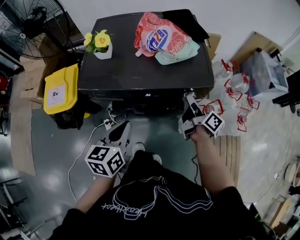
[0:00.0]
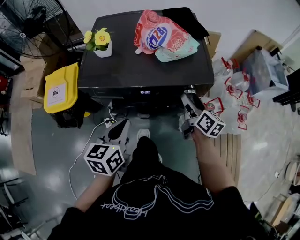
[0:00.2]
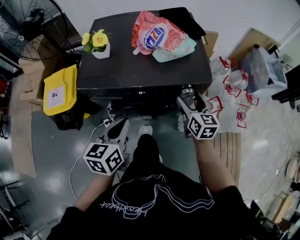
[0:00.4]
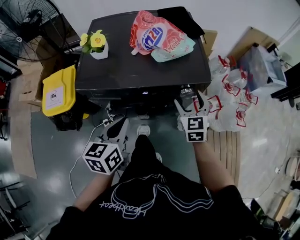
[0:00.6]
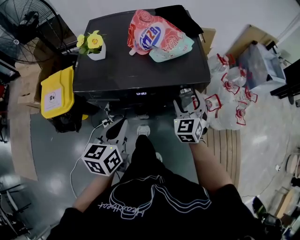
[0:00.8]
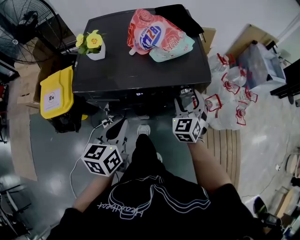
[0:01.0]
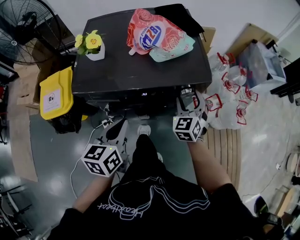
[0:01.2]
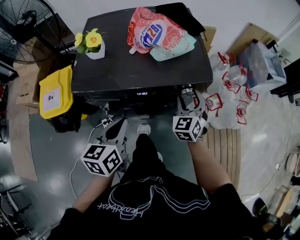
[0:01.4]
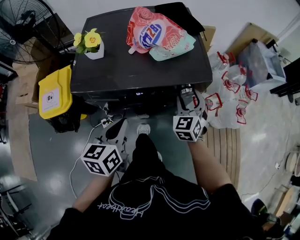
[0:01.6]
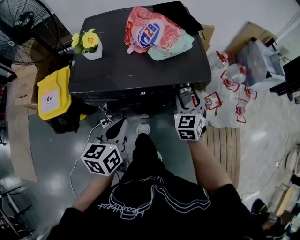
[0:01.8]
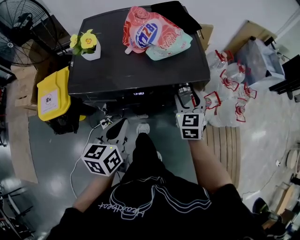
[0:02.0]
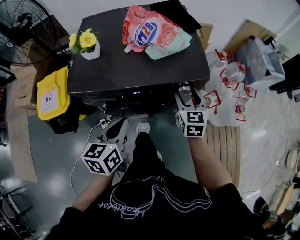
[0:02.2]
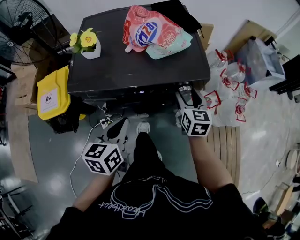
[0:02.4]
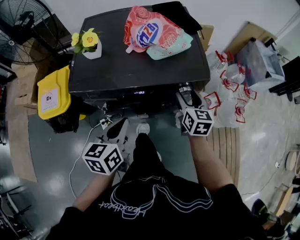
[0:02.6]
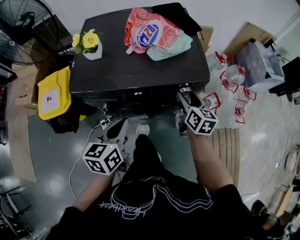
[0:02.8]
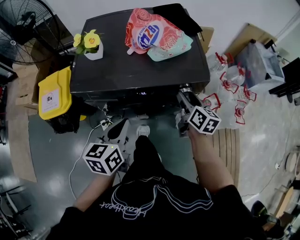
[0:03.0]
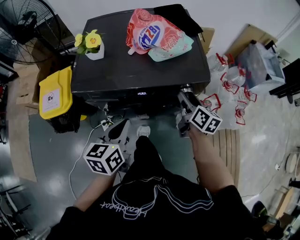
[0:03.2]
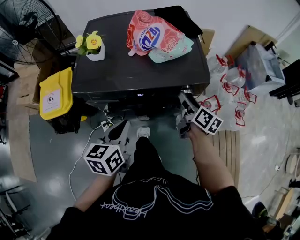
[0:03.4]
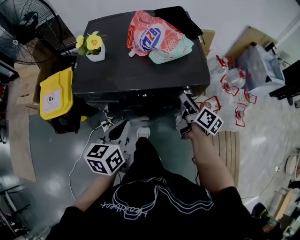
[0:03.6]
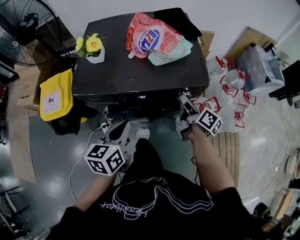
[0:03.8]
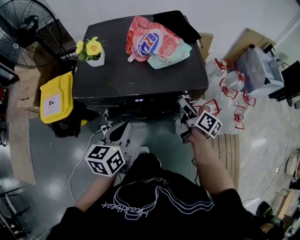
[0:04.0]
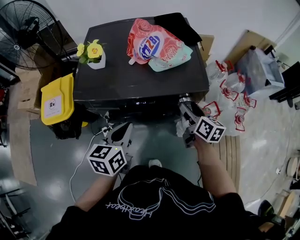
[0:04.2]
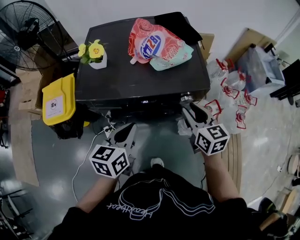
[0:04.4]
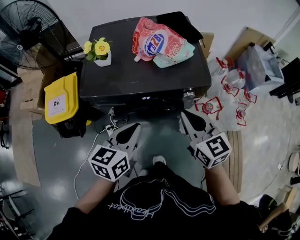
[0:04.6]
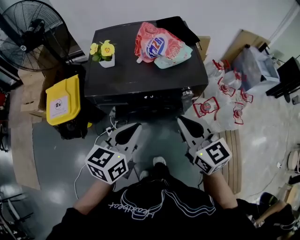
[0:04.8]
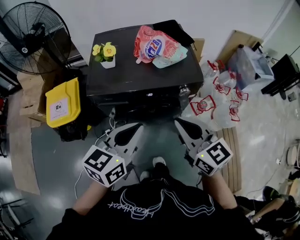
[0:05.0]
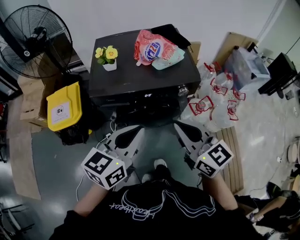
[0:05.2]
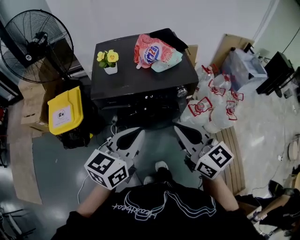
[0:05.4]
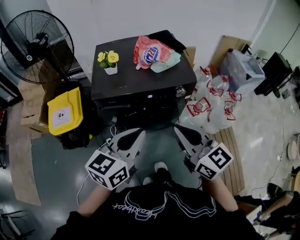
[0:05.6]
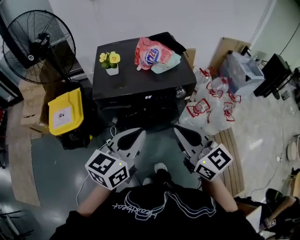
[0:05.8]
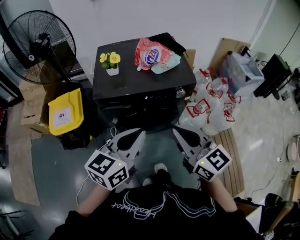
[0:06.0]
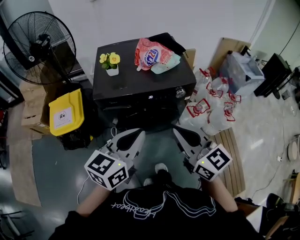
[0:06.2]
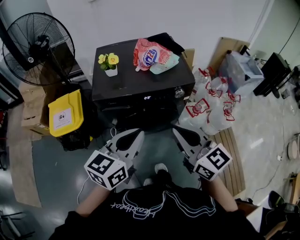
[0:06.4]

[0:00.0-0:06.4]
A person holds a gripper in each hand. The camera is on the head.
0.0 to 1.6 s: The right gripper rotates around the line of its fingers by about 100 degrees, counterclockwise from behind.
1.6 to 3.2 s: The right gripper rotates around the line of its fingers by roughly 70 degrees, clockwise from behind.
3.2 to 4.8 s: The left gripper goes approximately 10 cm upward, while the right gripper goes about 25 cm upward, backward and to the left, turns by some 40 degrees, and closes up.
4.8 to 6.4 s: The two grippers go about 15 cm backward and upward.

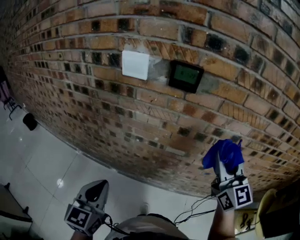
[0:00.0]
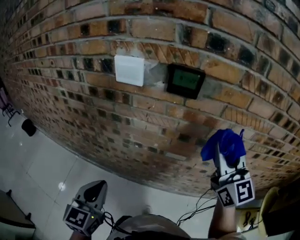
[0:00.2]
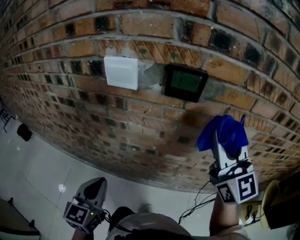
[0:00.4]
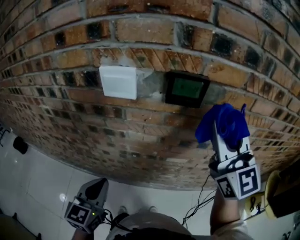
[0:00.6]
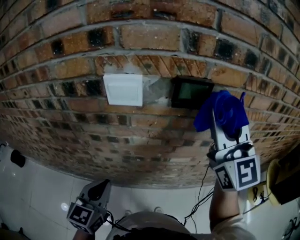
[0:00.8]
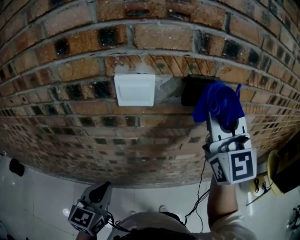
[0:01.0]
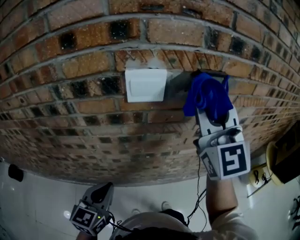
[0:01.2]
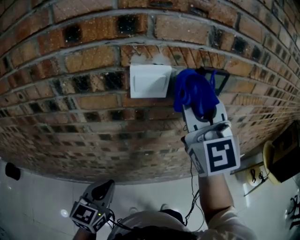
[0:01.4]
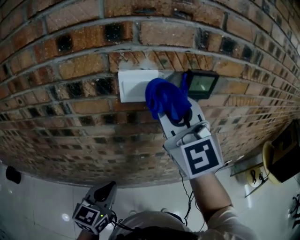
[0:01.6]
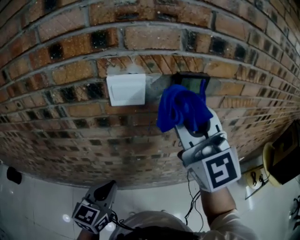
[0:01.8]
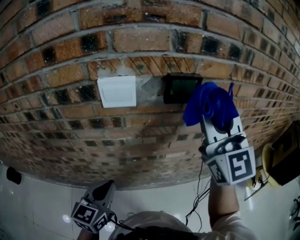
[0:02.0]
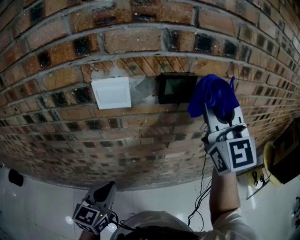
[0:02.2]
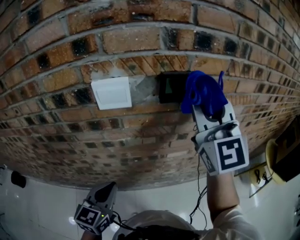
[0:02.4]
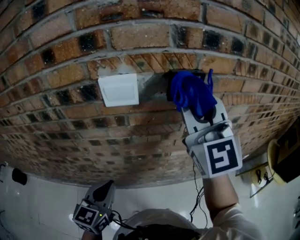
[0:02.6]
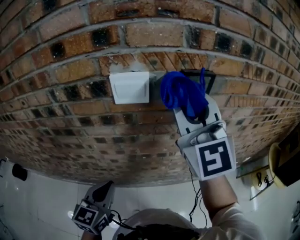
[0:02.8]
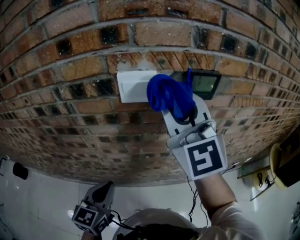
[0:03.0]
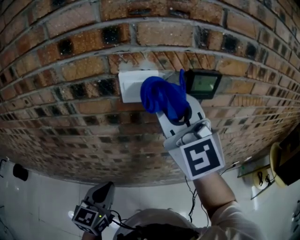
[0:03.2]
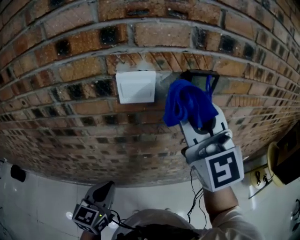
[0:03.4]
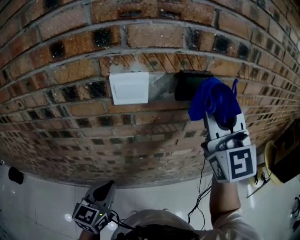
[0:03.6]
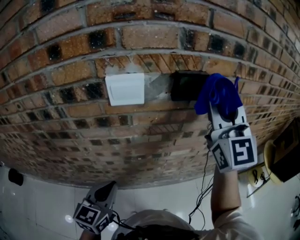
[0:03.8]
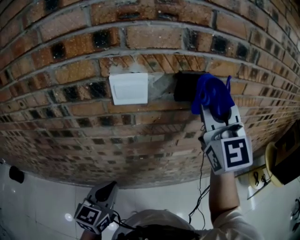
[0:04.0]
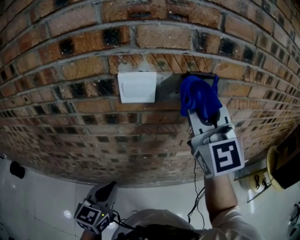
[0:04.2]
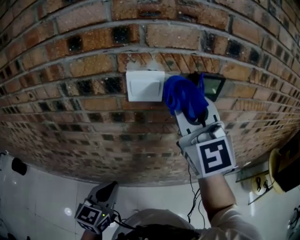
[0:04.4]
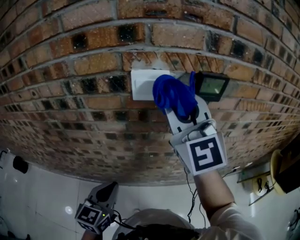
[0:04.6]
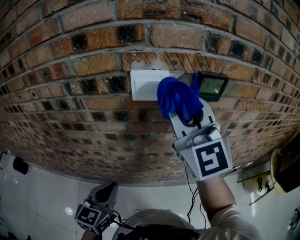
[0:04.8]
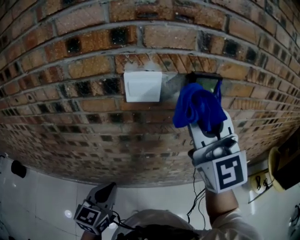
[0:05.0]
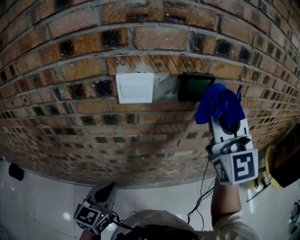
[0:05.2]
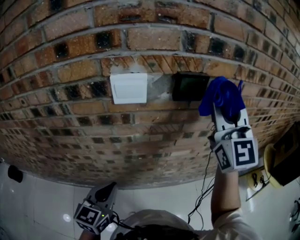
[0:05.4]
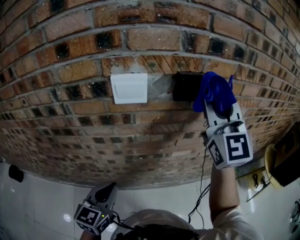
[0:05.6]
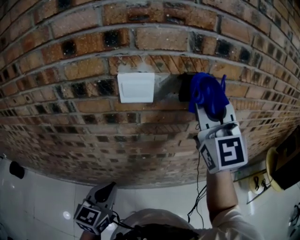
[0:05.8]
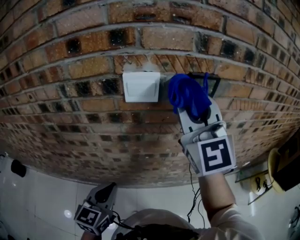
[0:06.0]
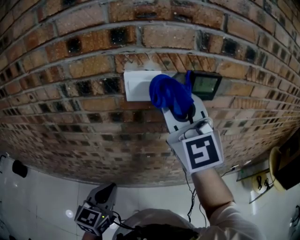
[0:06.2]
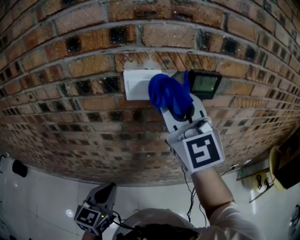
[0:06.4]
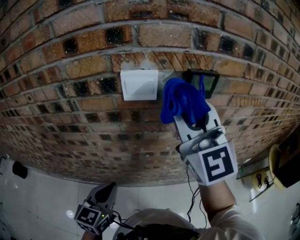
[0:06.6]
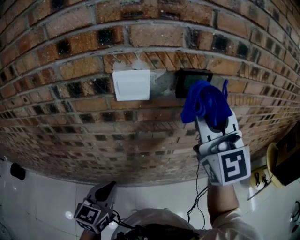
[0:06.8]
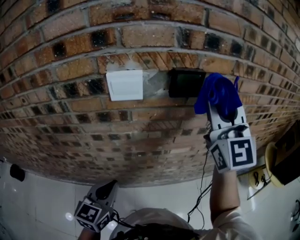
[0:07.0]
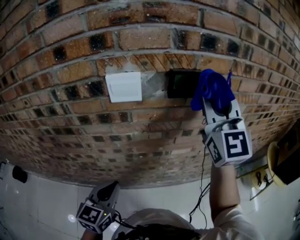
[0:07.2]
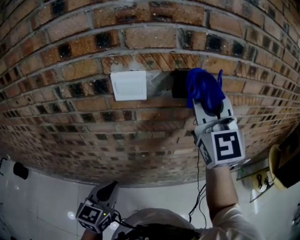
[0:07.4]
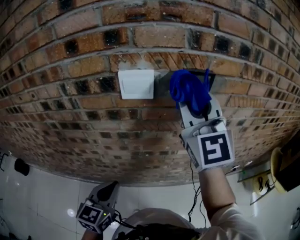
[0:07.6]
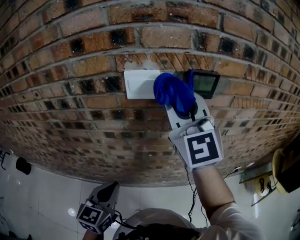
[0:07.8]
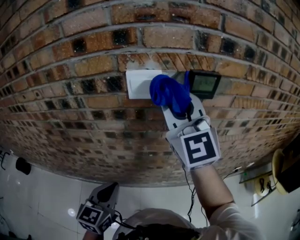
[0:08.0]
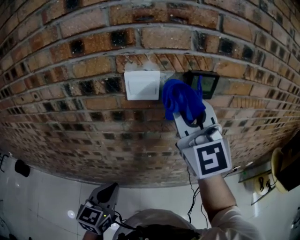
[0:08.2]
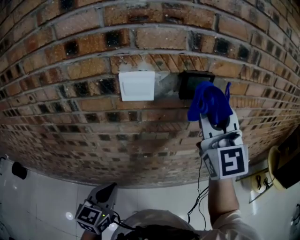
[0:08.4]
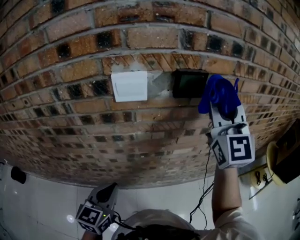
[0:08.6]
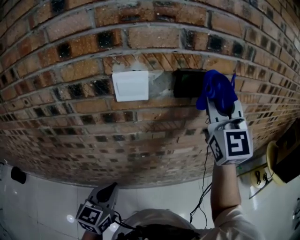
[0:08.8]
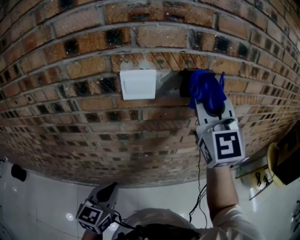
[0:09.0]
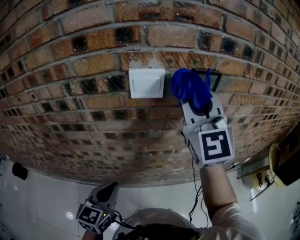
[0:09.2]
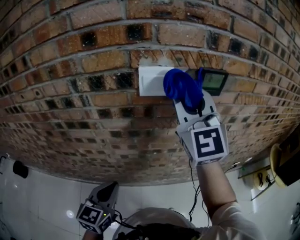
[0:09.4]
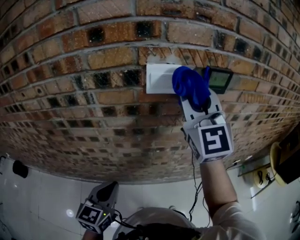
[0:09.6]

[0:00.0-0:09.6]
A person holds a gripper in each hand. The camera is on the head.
0.0 to 1.6 s: The left gripper moves forward and to the left, roughly 20 cm, and changes its angle by approximately 30 degrees; the right gripper heads to the left, covering about 30 cm.
1.6 to 3.2 s: The right gripper goes to the right and returns, some 20 cm each way.
3.2 to 4.8 s: The right gripper reaches roughly 15 cm to the right, then returns.
4.8 to 6.4 s: The right gripper travels to the right and back again, about 15 cm each way.
6.4 to 8.0 s: The right gripper reaches approximately 15 cm to the right, then returns.
8.0 to 9.6 s: The right gripper travels to the right and back again, some 15 cm each way. Meanwhile the left gripper is displaced to the left by roughly 5 cm.

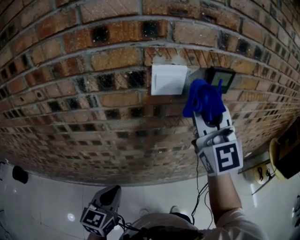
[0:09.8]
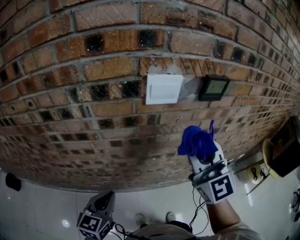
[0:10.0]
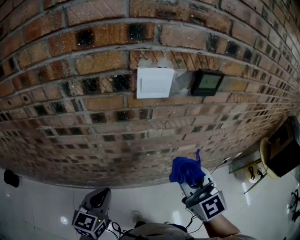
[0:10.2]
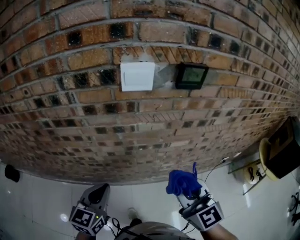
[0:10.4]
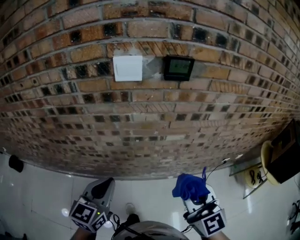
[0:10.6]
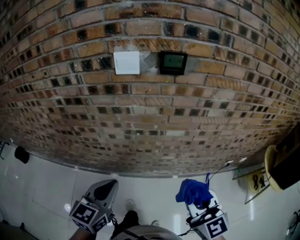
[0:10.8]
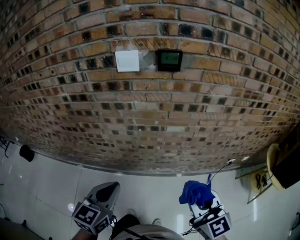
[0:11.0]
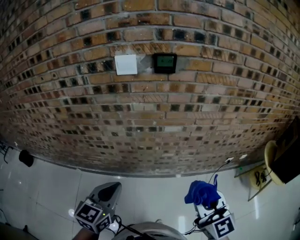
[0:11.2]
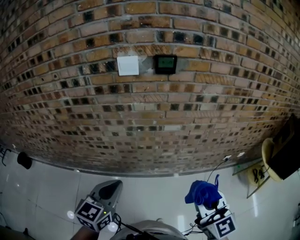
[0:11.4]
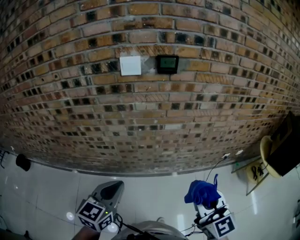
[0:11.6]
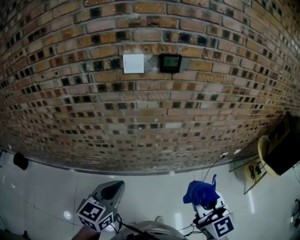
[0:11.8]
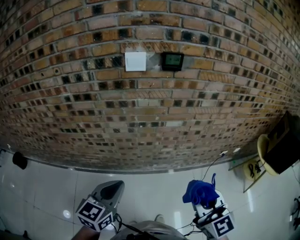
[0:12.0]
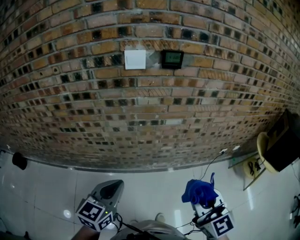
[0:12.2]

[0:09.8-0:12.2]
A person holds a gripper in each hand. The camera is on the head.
9.8 to 11.0 s: The left gripper goes some 25 cm backward and to the right; the right gripper moves backward, downward and to the right, about 40 cm, and changes its angle by roughly 30 degrees.
11.0 to 12.2 s: The right gripper goes some 10 cm backward and to the left. Meanwhile the left gripper shifts approximately 5 cm to the left.

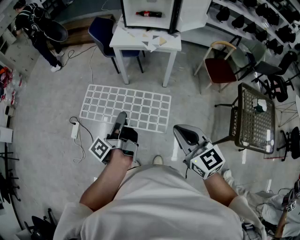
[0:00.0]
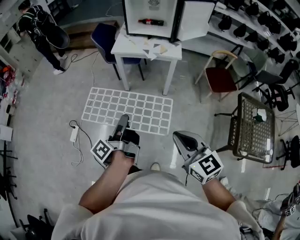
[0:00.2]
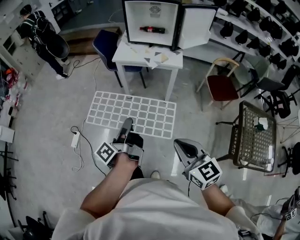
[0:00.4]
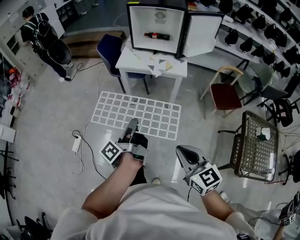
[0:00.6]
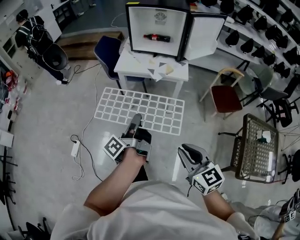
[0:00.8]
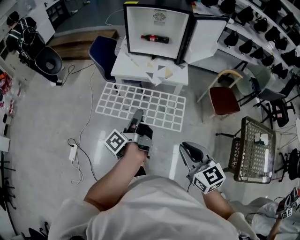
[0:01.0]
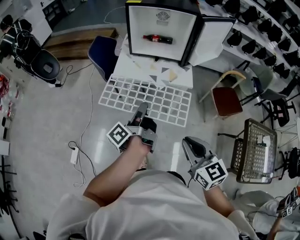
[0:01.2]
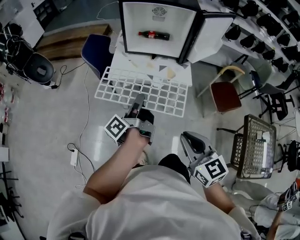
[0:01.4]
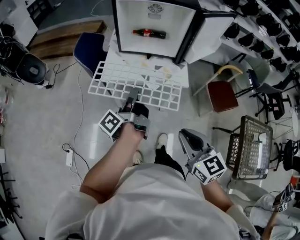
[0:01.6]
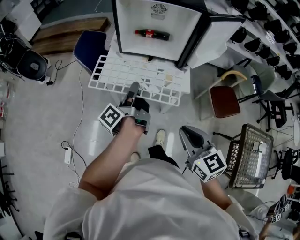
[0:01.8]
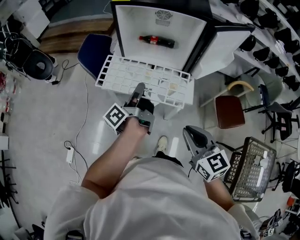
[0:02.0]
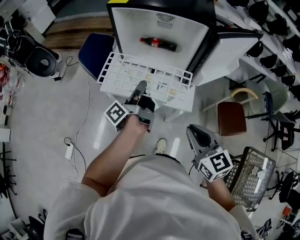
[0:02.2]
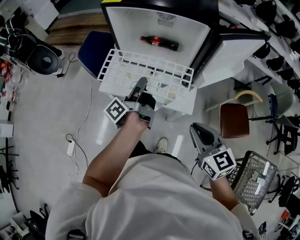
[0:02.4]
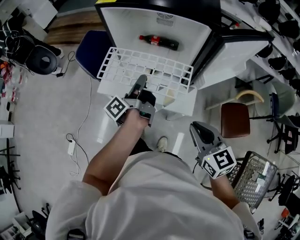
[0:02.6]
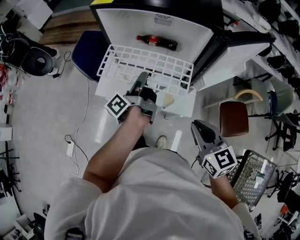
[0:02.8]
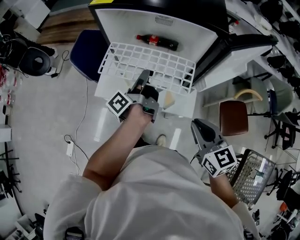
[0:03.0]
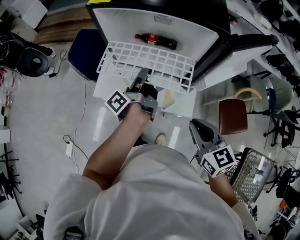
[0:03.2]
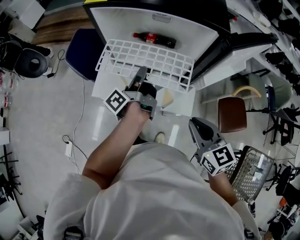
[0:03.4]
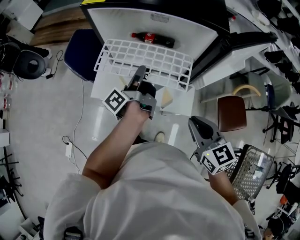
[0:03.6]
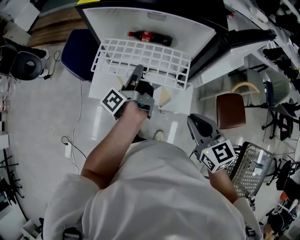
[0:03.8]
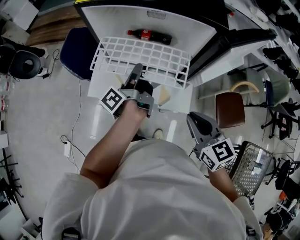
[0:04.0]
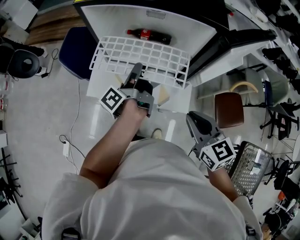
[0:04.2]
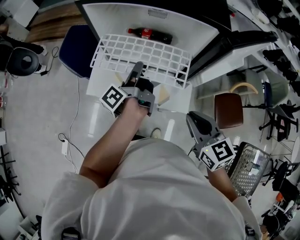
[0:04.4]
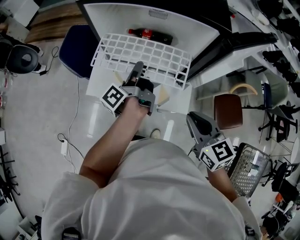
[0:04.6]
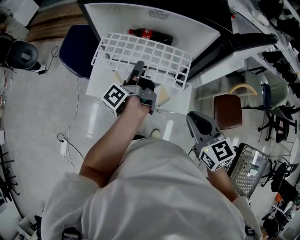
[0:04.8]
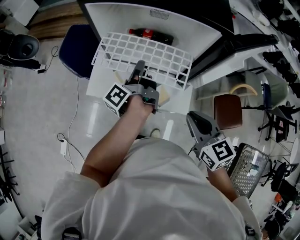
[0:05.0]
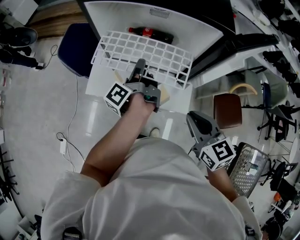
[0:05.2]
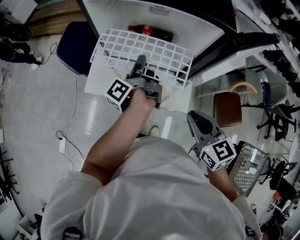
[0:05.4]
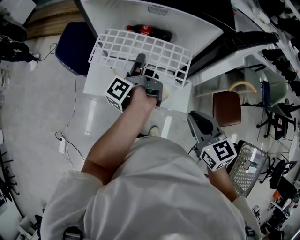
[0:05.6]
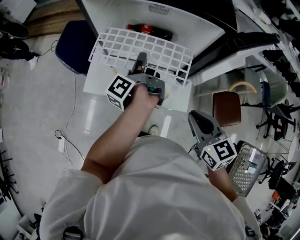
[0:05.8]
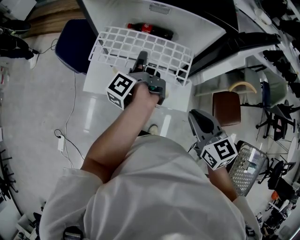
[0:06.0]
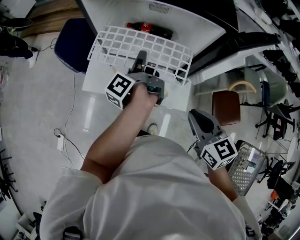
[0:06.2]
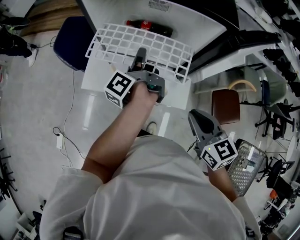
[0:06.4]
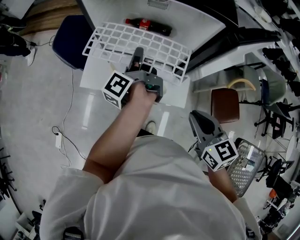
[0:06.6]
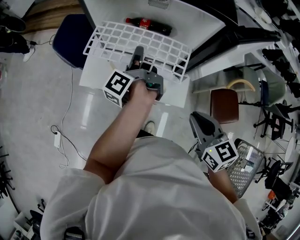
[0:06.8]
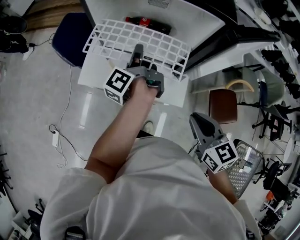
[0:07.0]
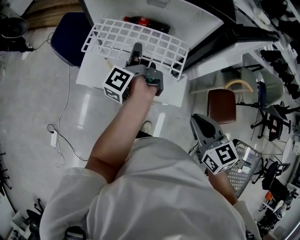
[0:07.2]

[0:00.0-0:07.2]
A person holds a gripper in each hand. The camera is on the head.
0.0 to 1.4 s: The right gripper shifts by roughly 30 cm.
1.4 to 2.8 s: The right gripper moves approximately 35 cm.
